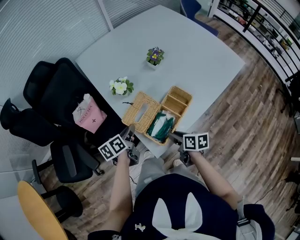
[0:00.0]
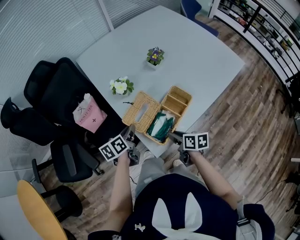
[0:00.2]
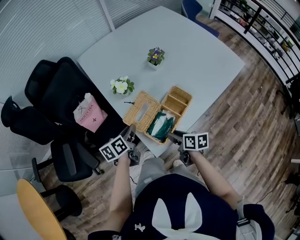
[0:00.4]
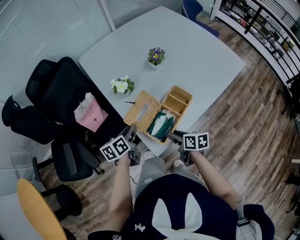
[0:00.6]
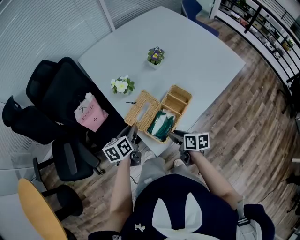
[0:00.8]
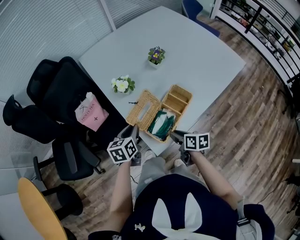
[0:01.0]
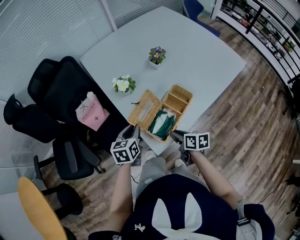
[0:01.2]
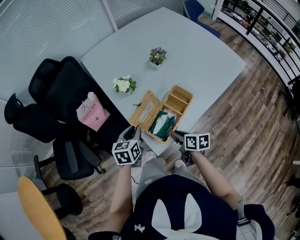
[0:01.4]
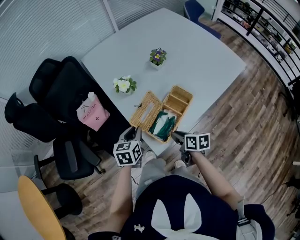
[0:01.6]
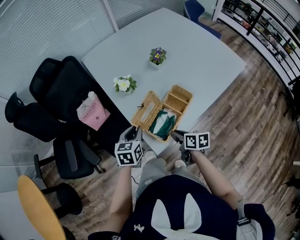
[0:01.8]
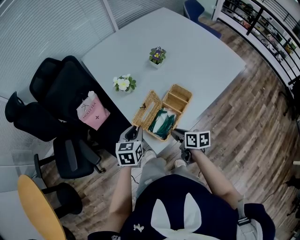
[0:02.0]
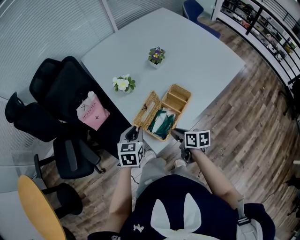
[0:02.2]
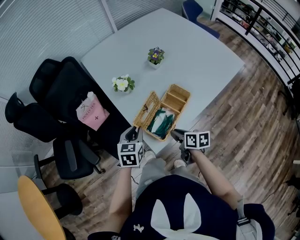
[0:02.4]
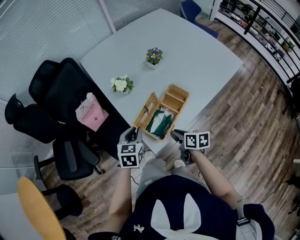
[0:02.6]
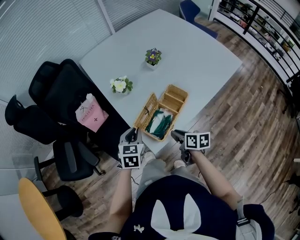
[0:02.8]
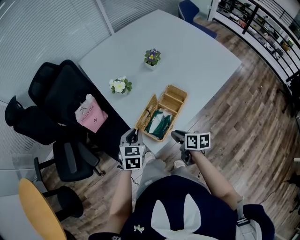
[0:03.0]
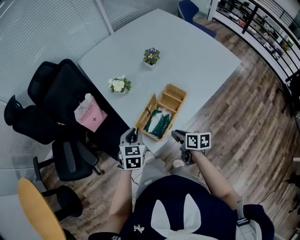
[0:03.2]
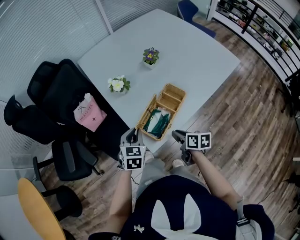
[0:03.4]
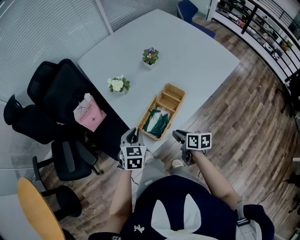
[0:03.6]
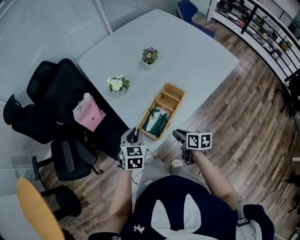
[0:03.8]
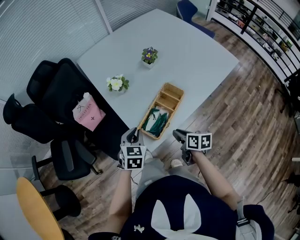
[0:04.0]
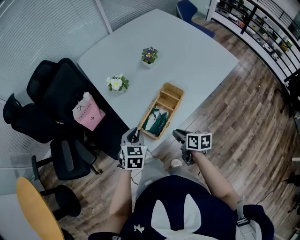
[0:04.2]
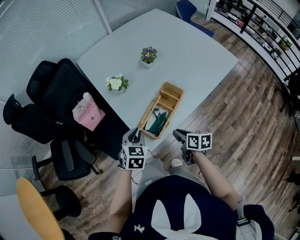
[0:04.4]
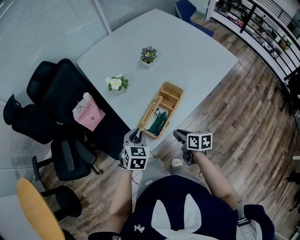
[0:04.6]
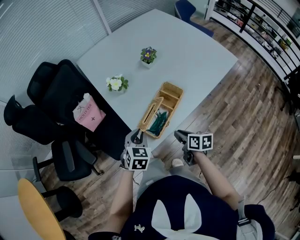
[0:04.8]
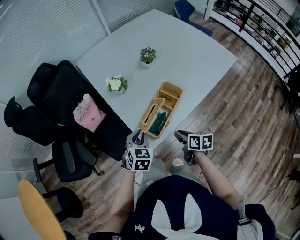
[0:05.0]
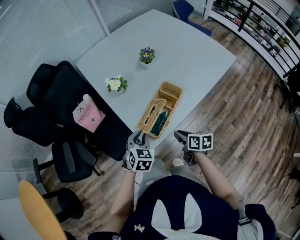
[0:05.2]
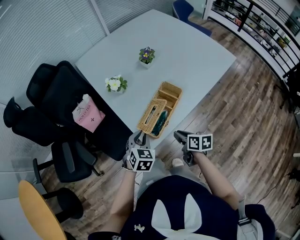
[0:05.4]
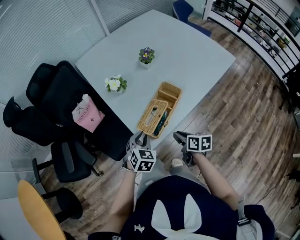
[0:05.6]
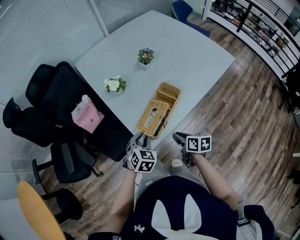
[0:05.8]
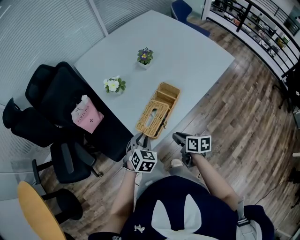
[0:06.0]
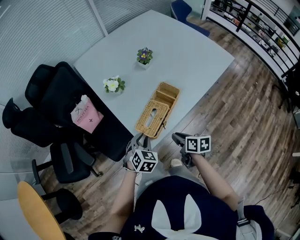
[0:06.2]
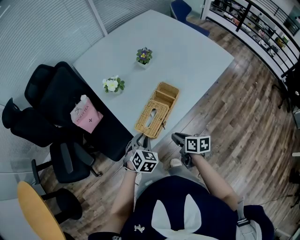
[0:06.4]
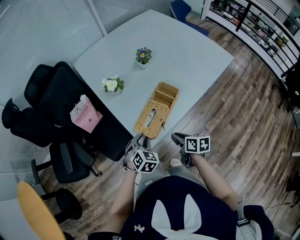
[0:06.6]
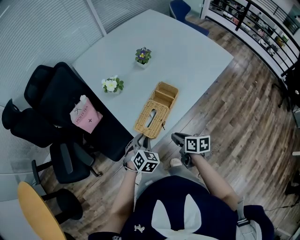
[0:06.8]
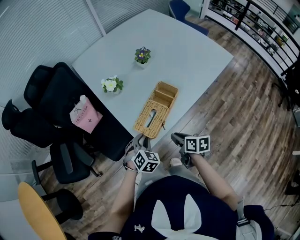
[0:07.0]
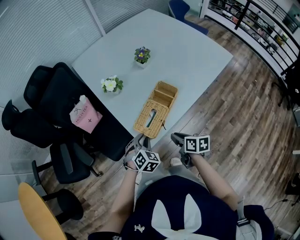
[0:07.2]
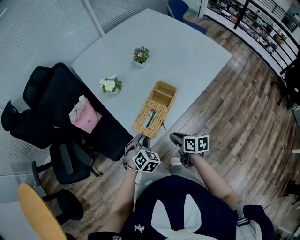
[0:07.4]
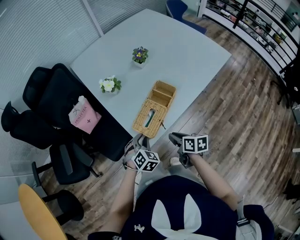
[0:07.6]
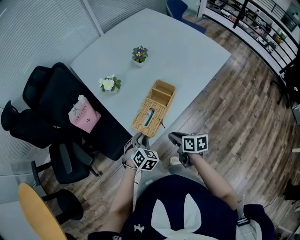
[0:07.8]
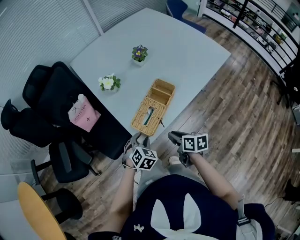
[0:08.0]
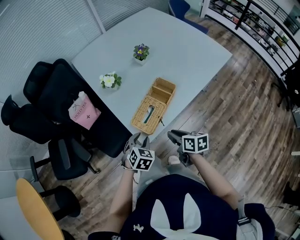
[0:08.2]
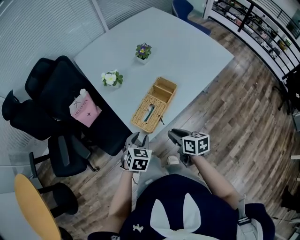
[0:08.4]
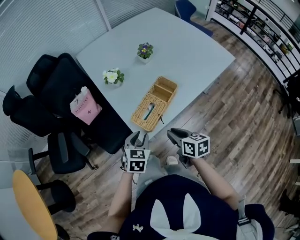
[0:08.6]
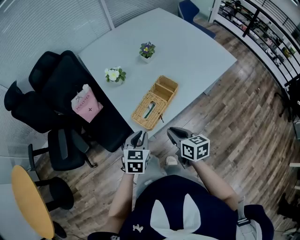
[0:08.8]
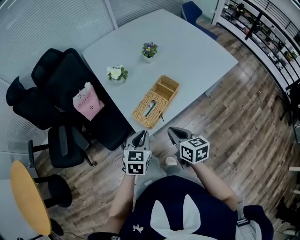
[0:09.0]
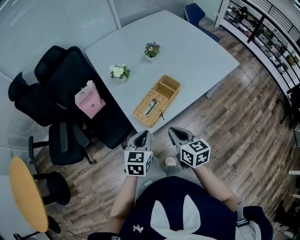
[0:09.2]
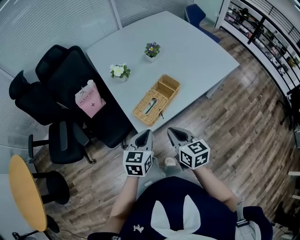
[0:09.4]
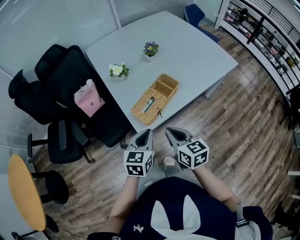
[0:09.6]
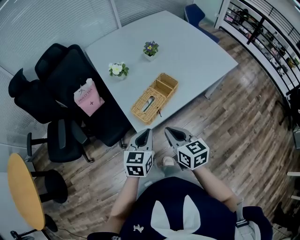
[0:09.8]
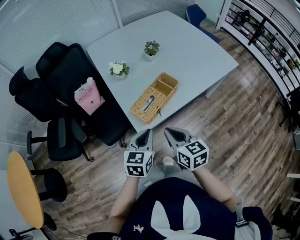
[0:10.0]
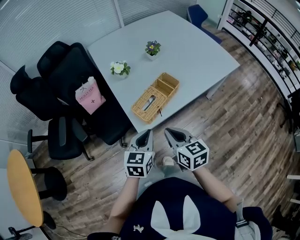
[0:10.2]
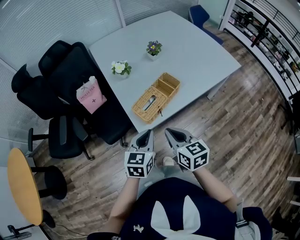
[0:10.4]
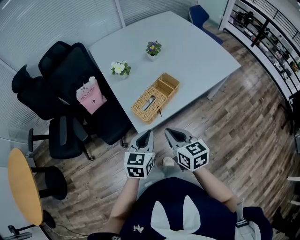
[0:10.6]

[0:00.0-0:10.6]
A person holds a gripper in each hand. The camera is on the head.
0:00.0 to 0:01.6: The left gripper changes place by about 5 cm, and rotates approximately 30 degrees.
0:01.6 to 0:03.0: The grippers make only small movements.
0:03.0 to 0:04.6: The grippers move only a little.
0:04.6 to 0:06.0: The left gripper shifts by some 5 cm.
0:06.0 to 0:07.6: The grippers move only a little.
0:07.6 to 0:09.0: The two grippers go about 10 cm upward. The left gripper rotates roughly 40 degrees; the right gripper turns by roughly 20 degrees.
0:09.0 to 0:10.6: The right gripper moves approximately 5 cm. The left gripper shifts by about 5 cm.

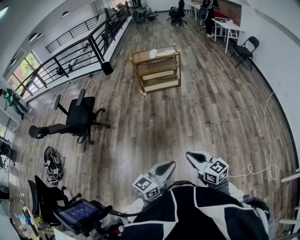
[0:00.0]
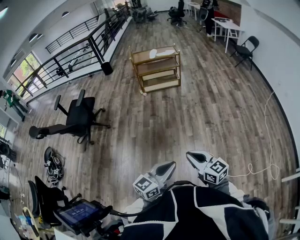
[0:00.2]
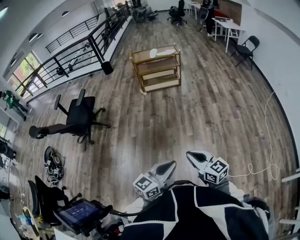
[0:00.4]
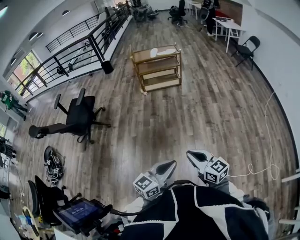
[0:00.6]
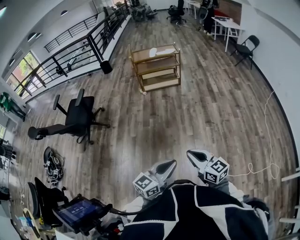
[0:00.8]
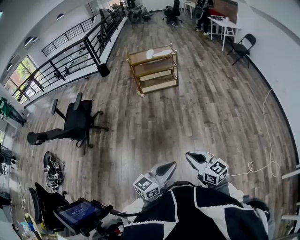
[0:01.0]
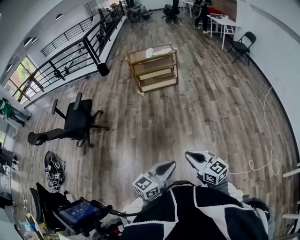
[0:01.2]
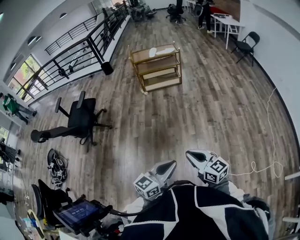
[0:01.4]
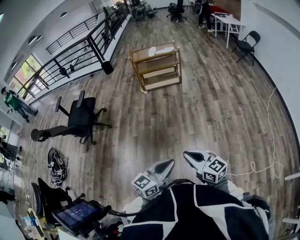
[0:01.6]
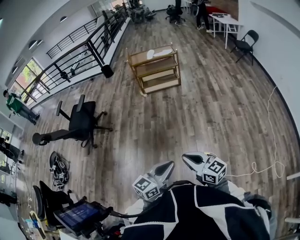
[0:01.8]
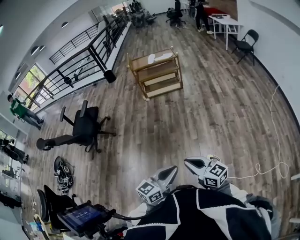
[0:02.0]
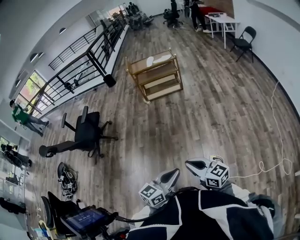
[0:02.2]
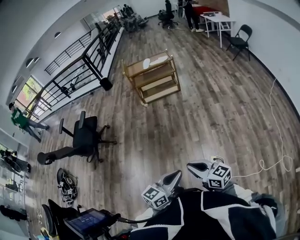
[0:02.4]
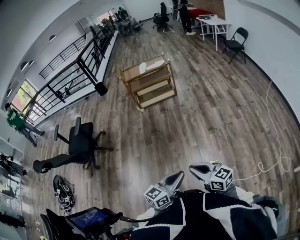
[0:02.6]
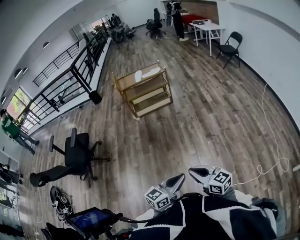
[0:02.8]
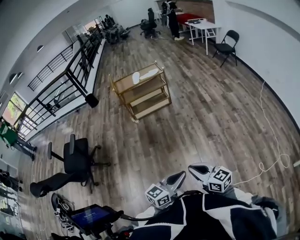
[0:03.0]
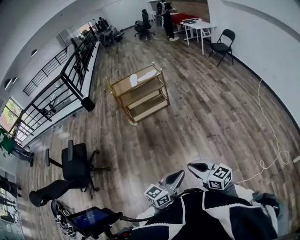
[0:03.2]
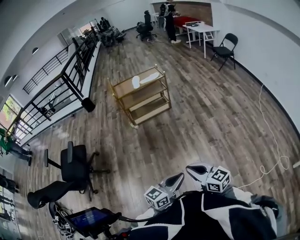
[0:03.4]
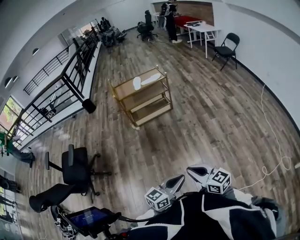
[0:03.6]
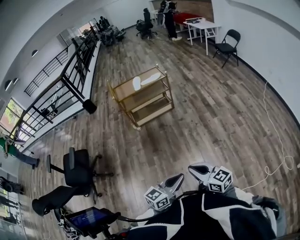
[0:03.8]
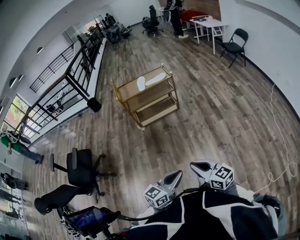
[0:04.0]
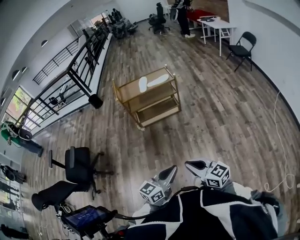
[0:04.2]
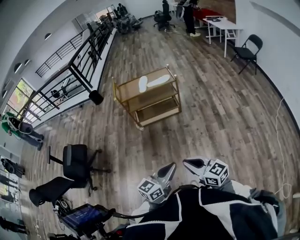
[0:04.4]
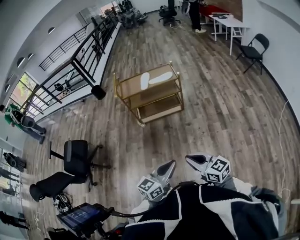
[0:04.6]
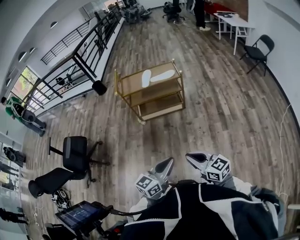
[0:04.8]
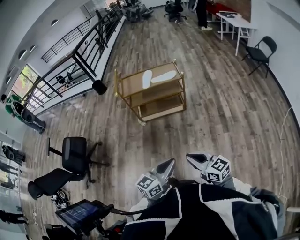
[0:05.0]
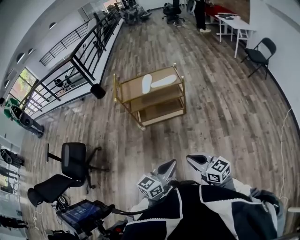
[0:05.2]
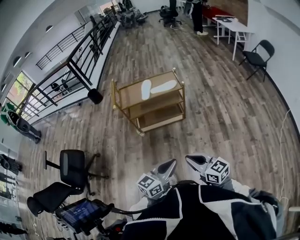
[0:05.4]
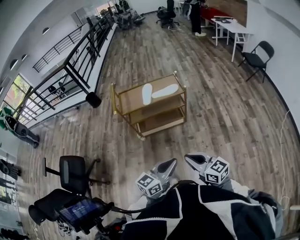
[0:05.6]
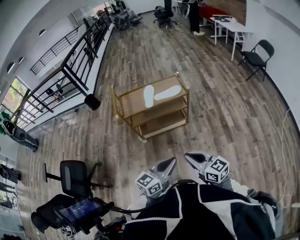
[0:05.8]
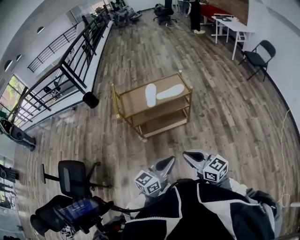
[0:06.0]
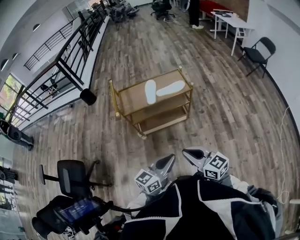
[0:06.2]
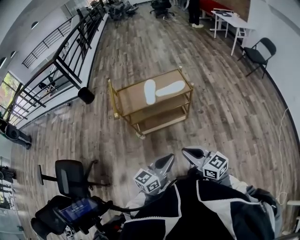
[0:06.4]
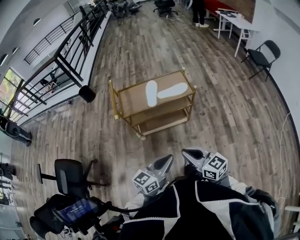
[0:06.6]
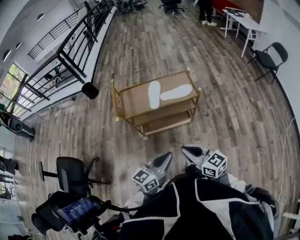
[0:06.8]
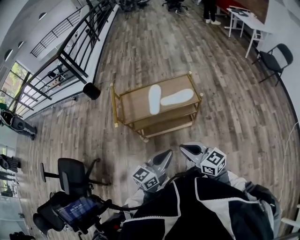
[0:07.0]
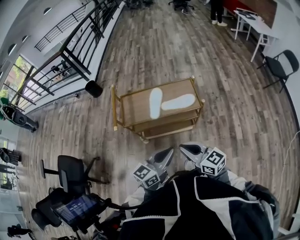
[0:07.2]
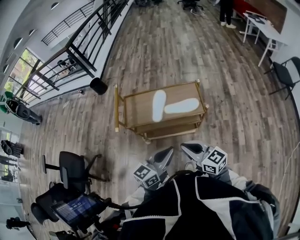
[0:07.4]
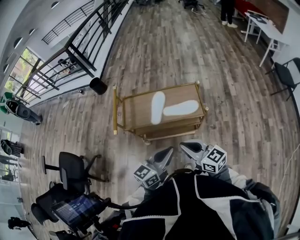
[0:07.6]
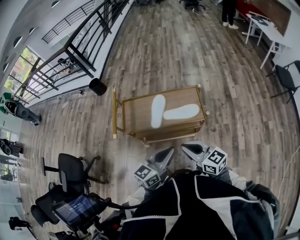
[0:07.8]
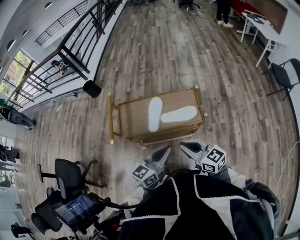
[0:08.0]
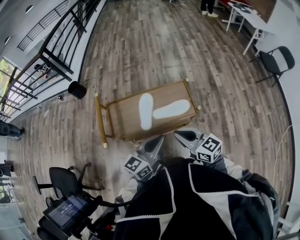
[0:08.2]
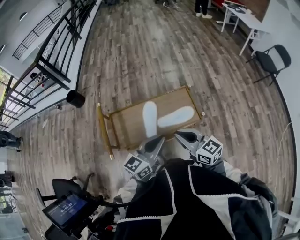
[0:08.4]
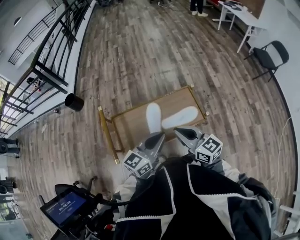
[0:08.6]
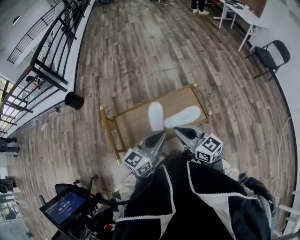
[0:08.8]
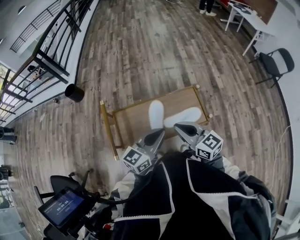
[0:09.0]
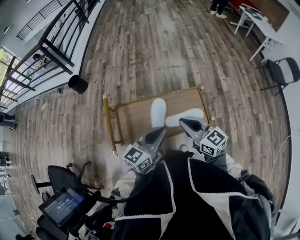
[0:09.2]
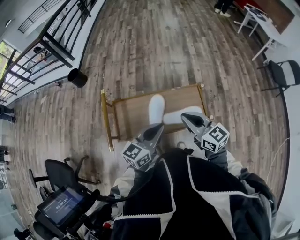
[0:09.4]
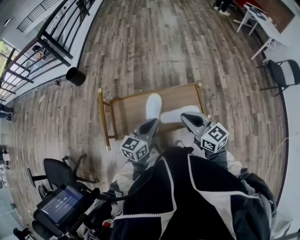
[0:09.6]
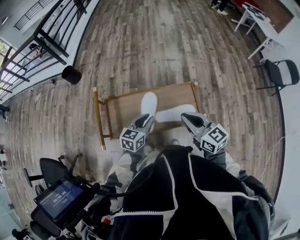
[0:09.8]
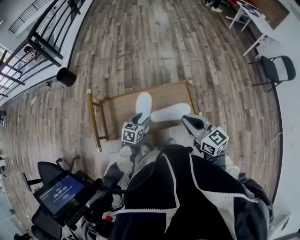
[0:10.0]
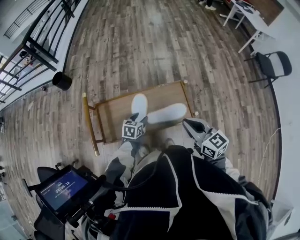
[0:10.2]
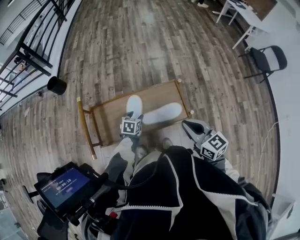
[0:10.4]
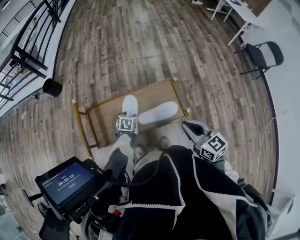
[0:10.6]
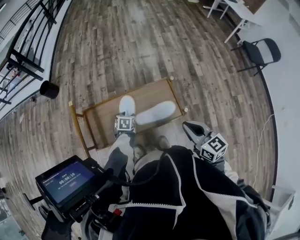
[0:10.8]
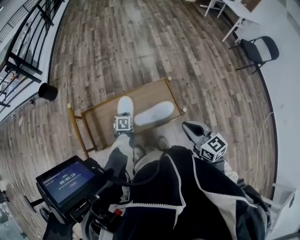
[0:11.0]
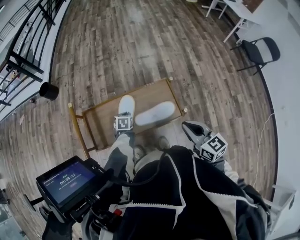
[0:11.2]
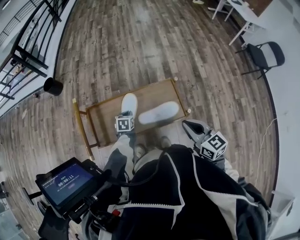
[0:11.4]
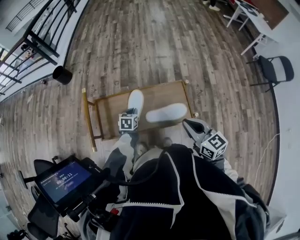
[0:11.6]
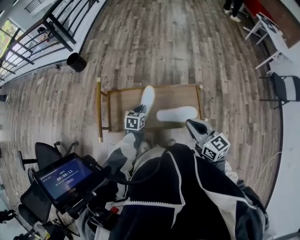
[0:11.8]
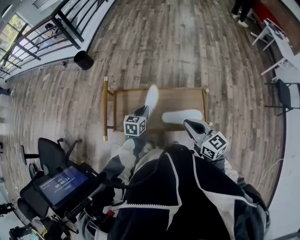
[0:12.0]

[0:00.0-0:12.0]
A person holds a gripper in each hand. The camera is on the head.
0:00.0 to 0:01.6: There are only small adjustments of the grippers.
0:01.6 to 0:03.0: Both grippers move forward, approximately 15 cm.
0:03.0 to 0:04.4: Both grippers travel together forward, some 35 cm.
0:04.4 to 0:06.0: Both grippers move forward, approximately 30 cm.
0:06.0 to 0:07.6: Both grippers travel together forward, roughly 30 cm.
0:07.6 to 0:09.0: The right gripper heads forward, covering approximately 20 cm, while the left gripper is displaced forward and to the left by roughly 25 cm.
0:09.0 to 0:10.4: The left gripper shifts about 25 cm downward, angles its fingers downward, by roughly 50 degrees, and opens its fingers. The right gripper is displaced to the right by approximately 10 cm.
0:10.4 to 0:12.0: The right gripper travels to the left by approximately 5 cm. Meanwhile the left gripper shifts about 10 cm upward and to the left, changes its angle by approximately 20 degrees, and closes its fingers.

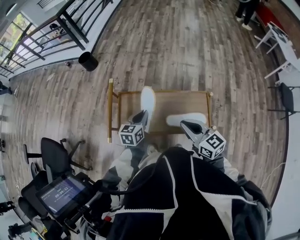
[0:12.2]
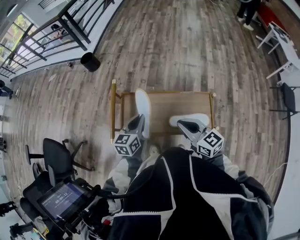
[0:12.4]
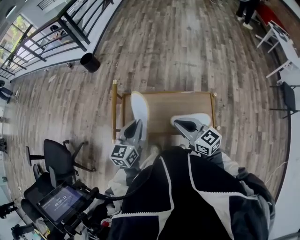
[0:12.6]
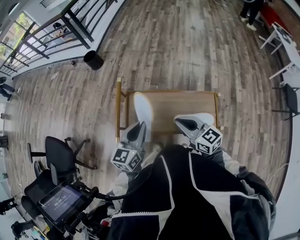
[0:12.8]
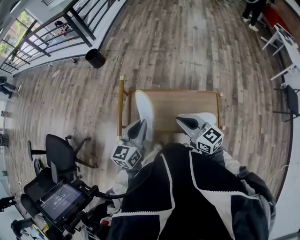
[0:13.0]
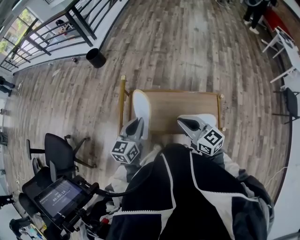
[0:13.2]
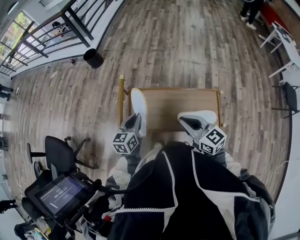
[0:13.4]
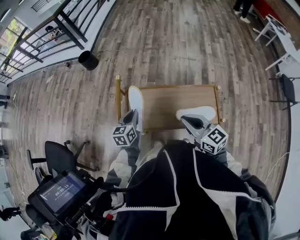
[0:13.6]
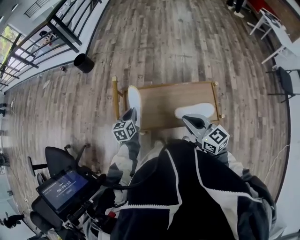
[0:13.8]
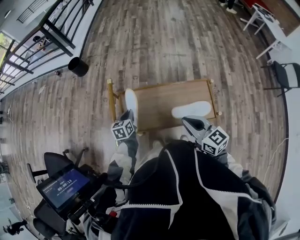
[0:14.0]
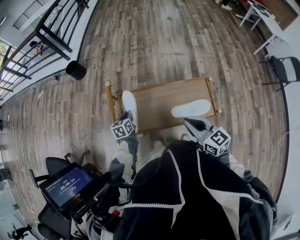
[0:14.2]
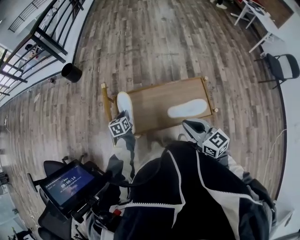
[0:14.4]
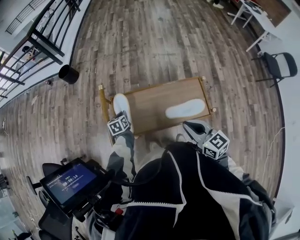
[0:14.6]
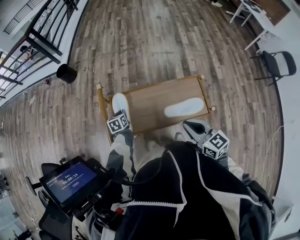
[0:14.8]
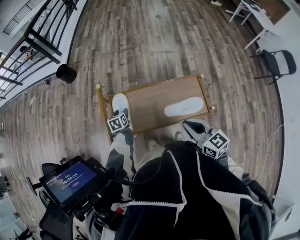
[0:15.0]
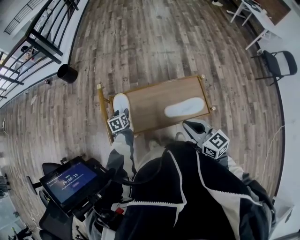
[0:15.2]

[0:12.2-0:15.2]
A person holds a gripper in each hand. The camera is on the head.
0:12.2 to 0:13.8: The right gripper shifts roughly 5 cm to the left; the left gripper travels to the left and forward by about 15 cm, and reaches some 10 cm upward, then returns.
0:13.8 to 0:15.2: The left gripper travels downward by approximately 10 cm, and opens, while the right gripper is displaced backward by roughly 5 cm.
